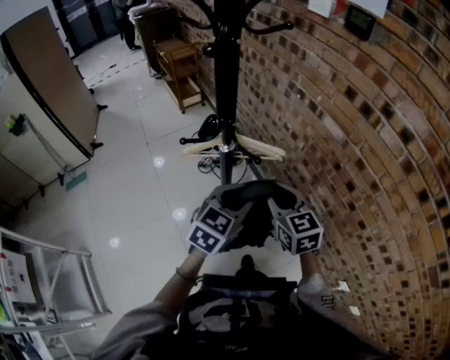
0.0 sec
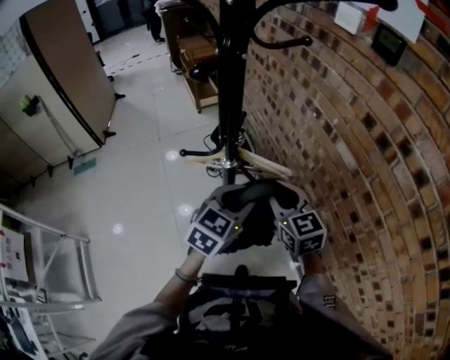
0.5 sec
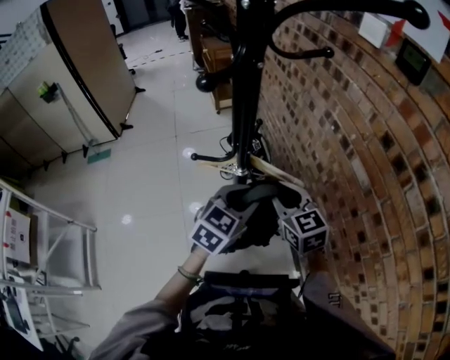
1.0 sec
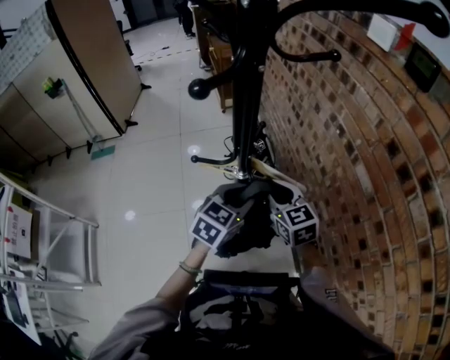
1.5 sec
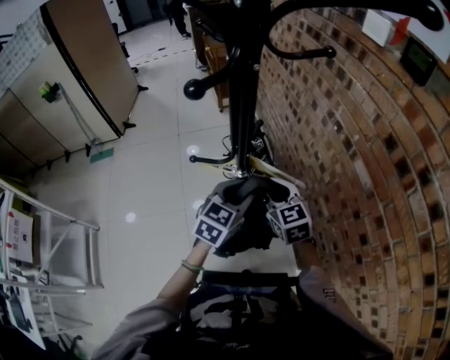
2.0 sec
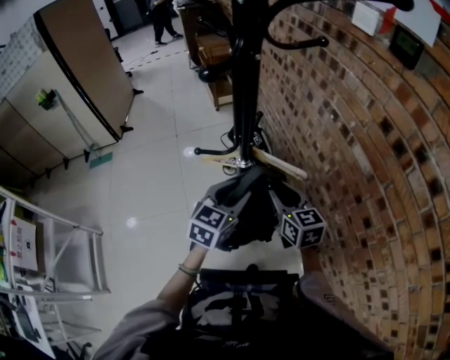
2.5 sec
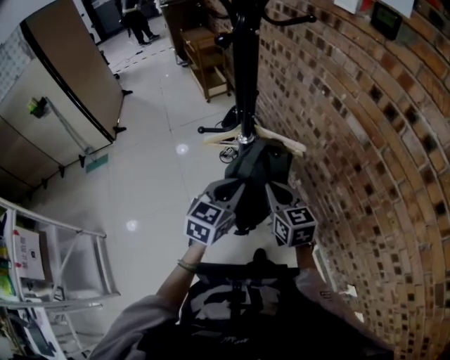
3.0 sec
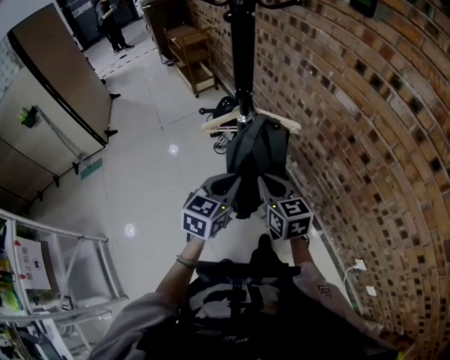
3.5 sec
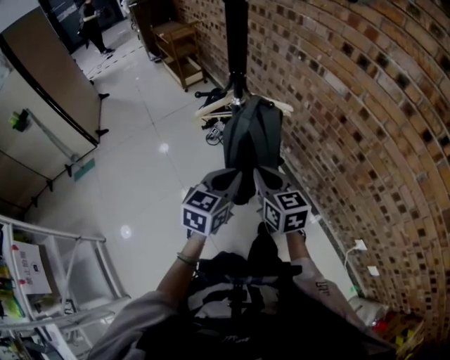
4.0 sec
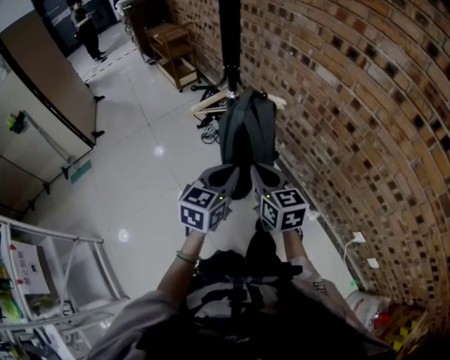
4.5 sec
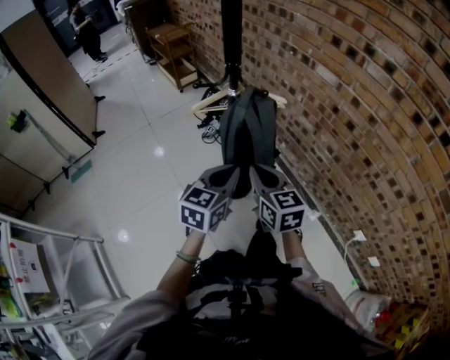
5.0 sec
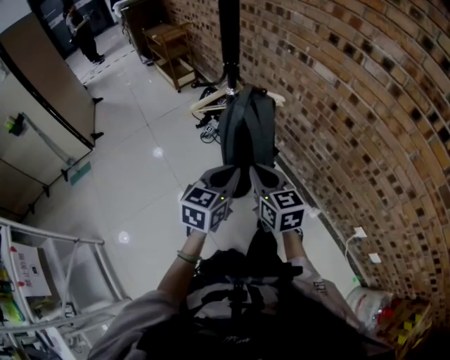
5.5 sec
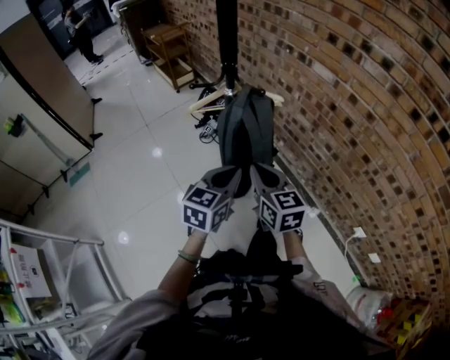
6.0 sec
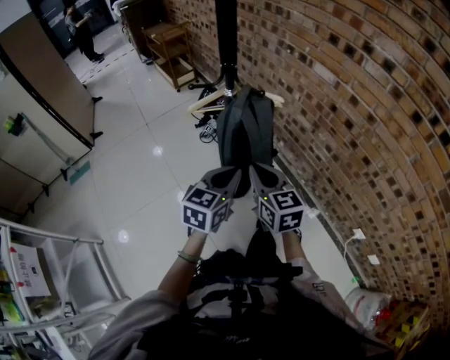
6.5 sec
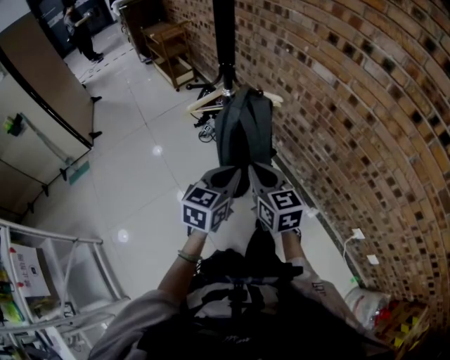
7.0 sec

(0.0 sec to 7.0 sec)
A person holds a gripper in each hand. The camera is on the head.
0.0 sec - 2.0 sec: The grippers both shift forward by about 15 cm.
2.0 sec - 3.5 sec: The left gripper is displaced backward and to the left by approximately 20 cm, and closes, while the right gripper shifts some 20 cm backward, swivels approximately 30 degrees, and closes its fingers.
3.5 sec - 5.0 sec: The two grippers go roughly 10 cm backward.
5.0 sec - 7.0 sec: The grippers stay close to where they were, moving slightly.

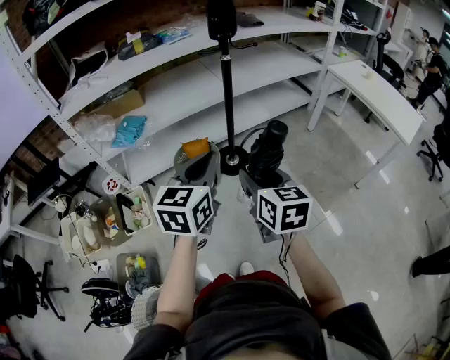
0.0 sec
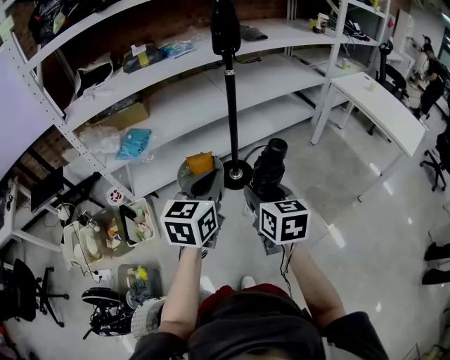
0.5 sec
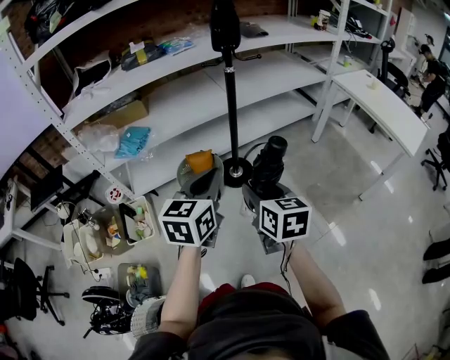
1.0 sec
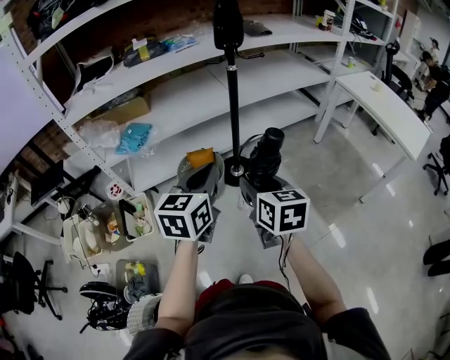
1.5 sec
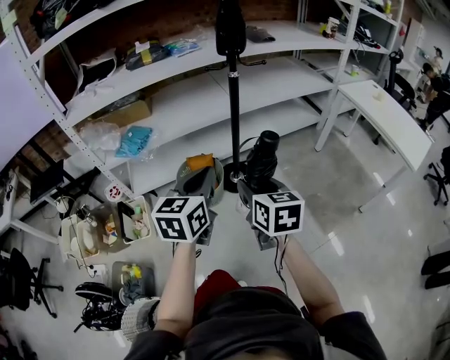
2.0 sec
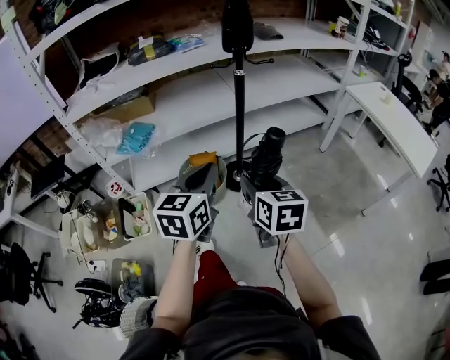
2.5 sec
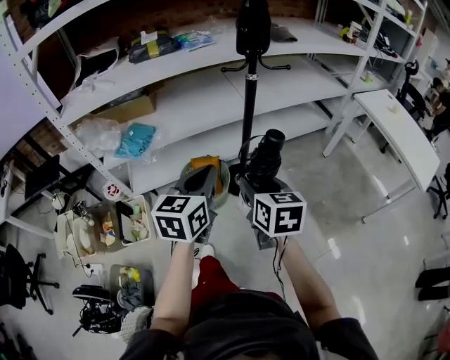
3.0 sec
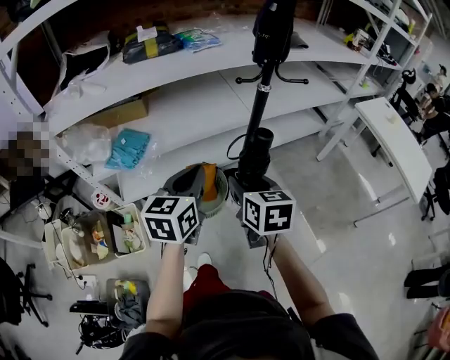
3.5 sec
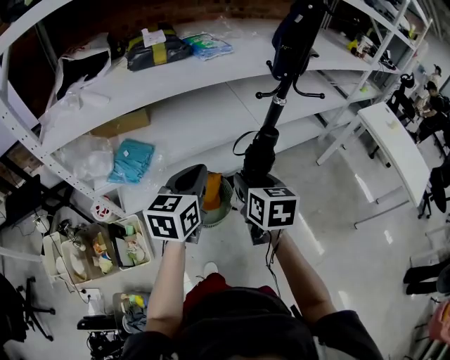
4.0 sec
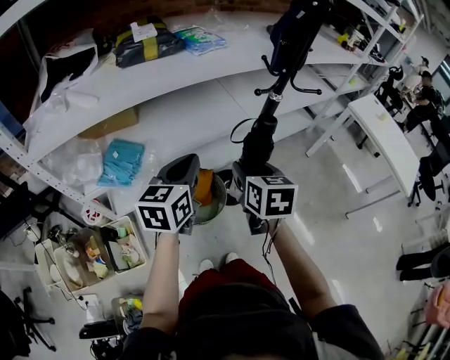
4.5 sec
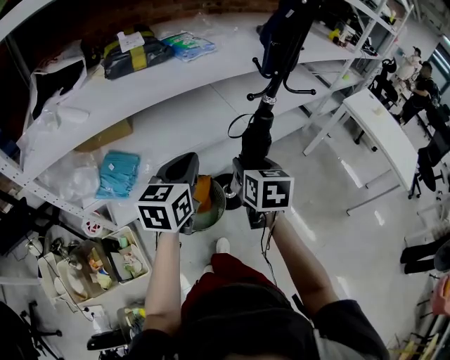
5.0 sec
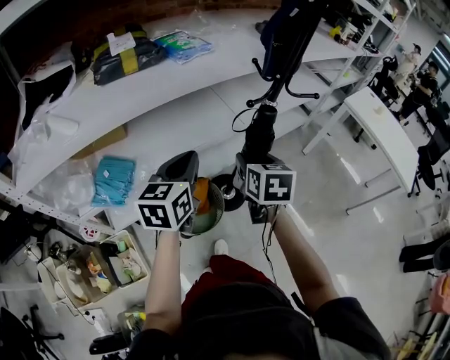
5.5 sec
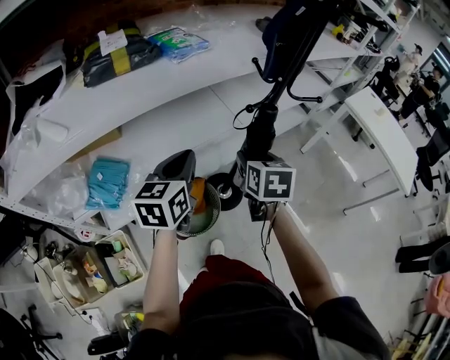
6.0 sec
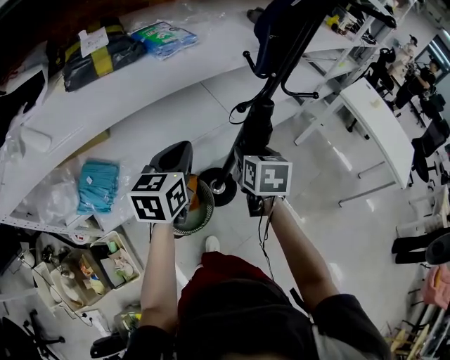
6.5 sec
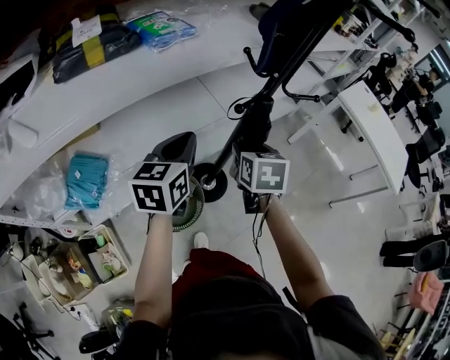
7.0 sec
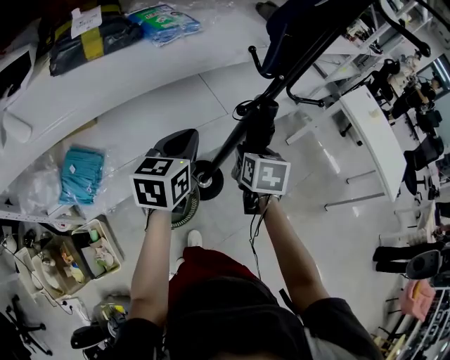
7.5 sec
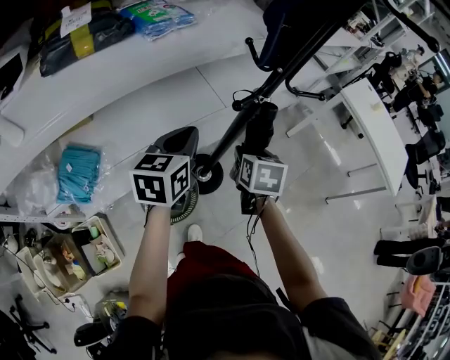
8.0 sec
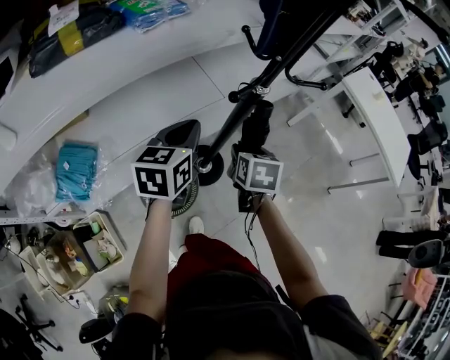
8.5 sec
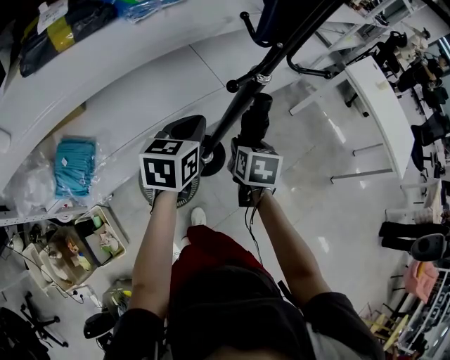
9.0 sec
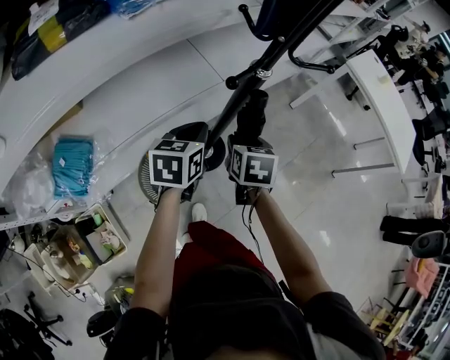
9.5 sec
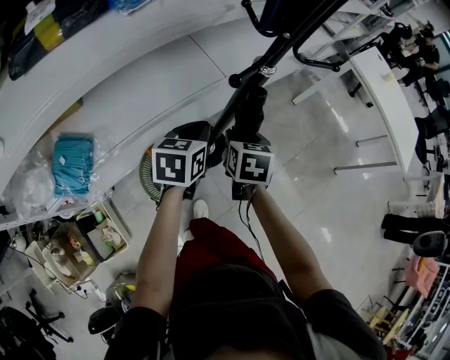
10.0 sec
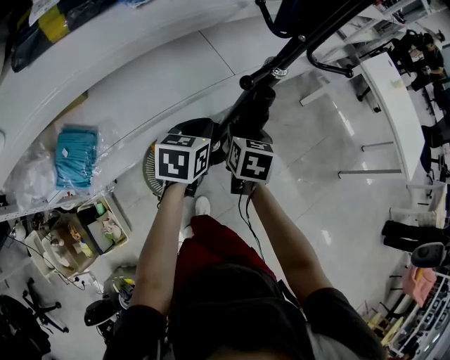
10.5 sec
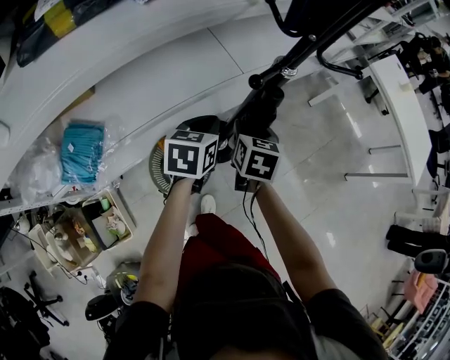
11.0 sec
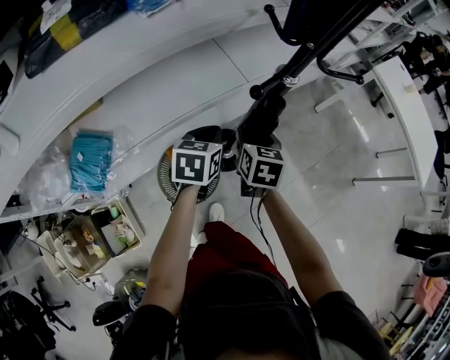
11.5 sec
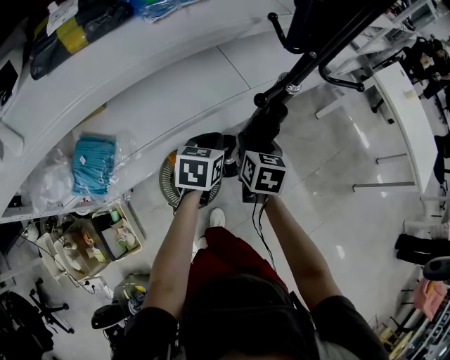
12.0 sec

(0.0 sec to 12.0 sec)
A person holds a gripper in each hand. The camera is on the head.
0.0 sec - 2.0 sec: The right gripper shifts approximately 5 cm forward; the left gripper ends up about 5 cm from where it was.
2.0 sec - 4.0 sec: The grippers both shift forward and to the left by some 35 cm.
4.0 sec - 6.0 sec: The grippers both shift forward by about 15 cm.
6.0 sec - 8.0 sec: The right gripper moves downward, forward and to the right, roughly 10 cm; the left gripper moves forward and to the right, roughly 10 cm.
8.0 sec - 10.0 sec: The left gripper moves downward and to the right, about 10 cm. Meanwhile the right gripper shifts roughly 5 cm downward.
10.0 sec - 12.0 sec: The grippers stay close to where they were, moving slightly.

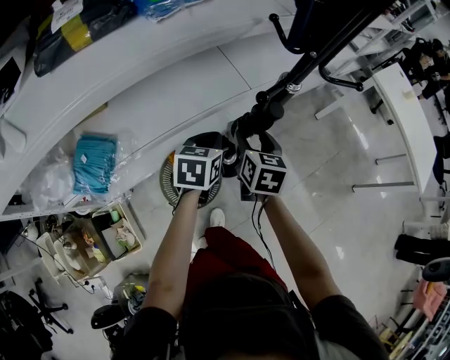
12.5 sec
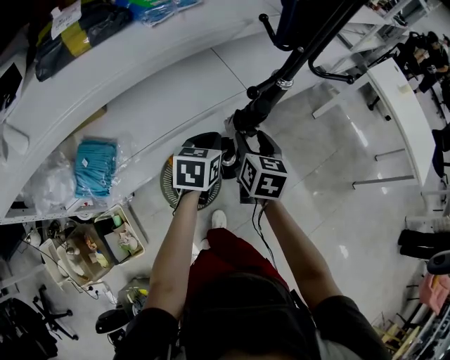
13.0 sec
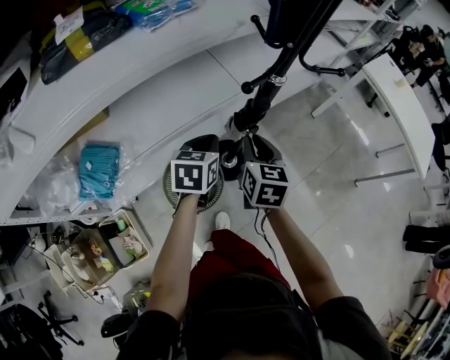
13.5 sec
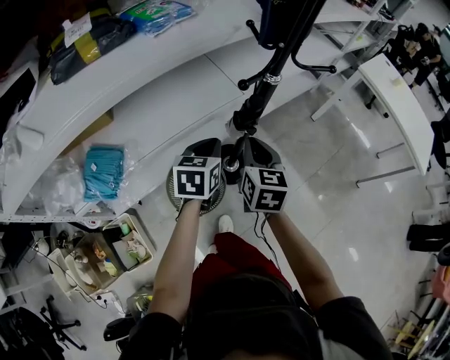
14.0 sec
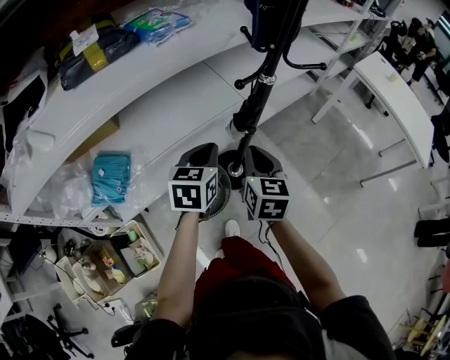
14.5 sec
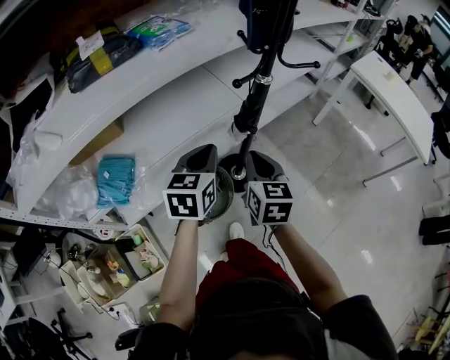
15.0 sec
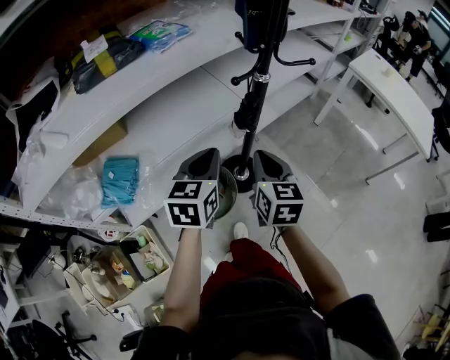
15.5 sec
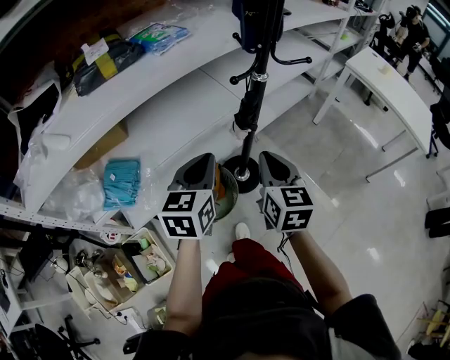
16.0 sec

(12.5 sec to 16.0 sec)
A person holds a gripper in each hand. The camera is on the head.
12.5 sec - 14.5 sec: The left gripper is displaced upward and backward by roughly 10 cm. The right gripper moves backward and upward, approximately 15 cm, and closes.
14.5 sec - 16.0 sec: The two grippers go some 10 cm backward and upward.

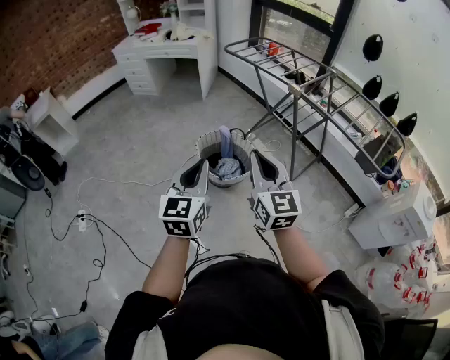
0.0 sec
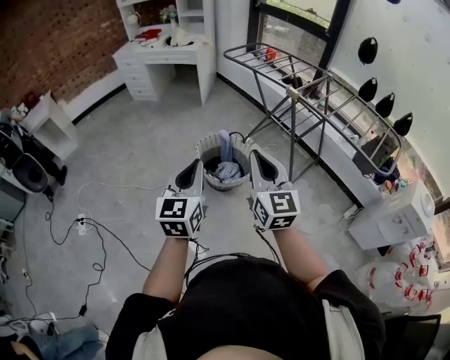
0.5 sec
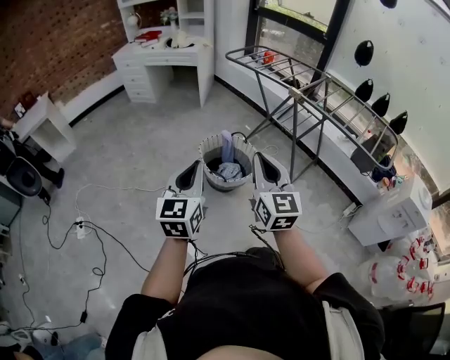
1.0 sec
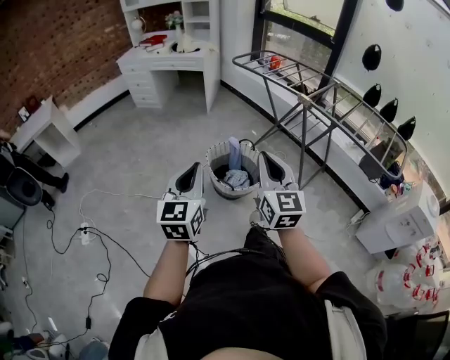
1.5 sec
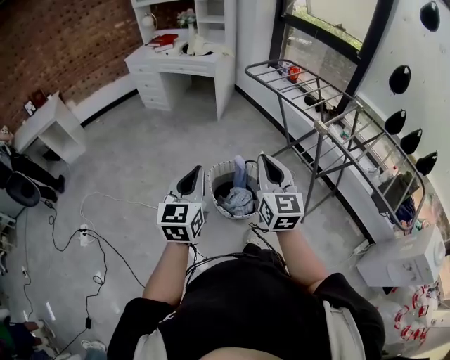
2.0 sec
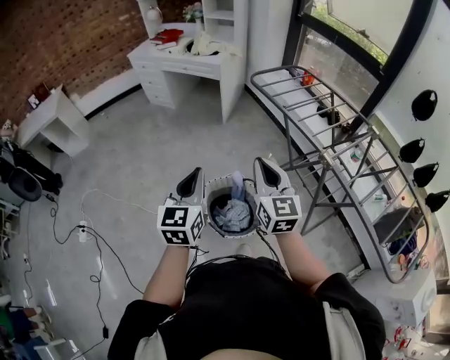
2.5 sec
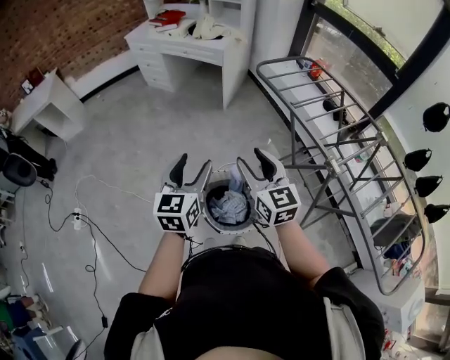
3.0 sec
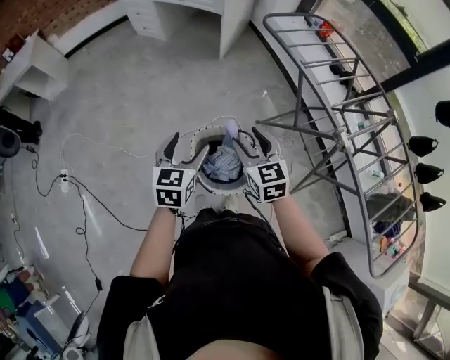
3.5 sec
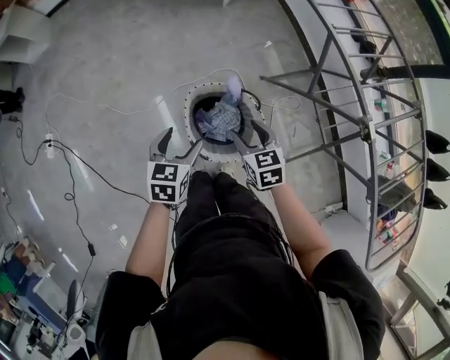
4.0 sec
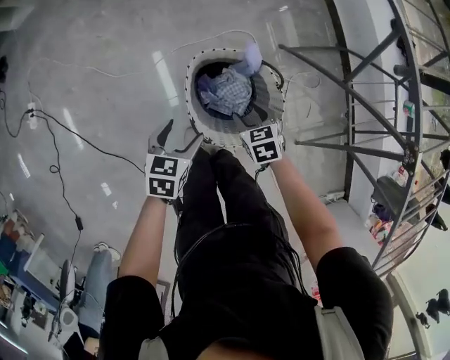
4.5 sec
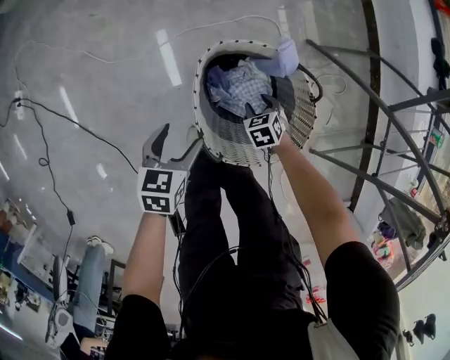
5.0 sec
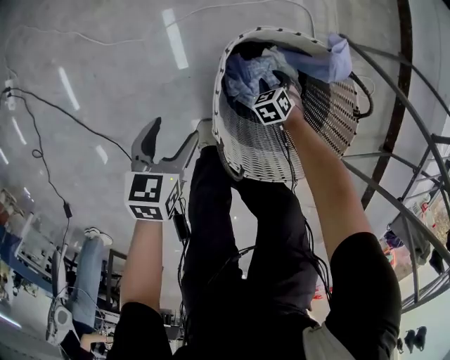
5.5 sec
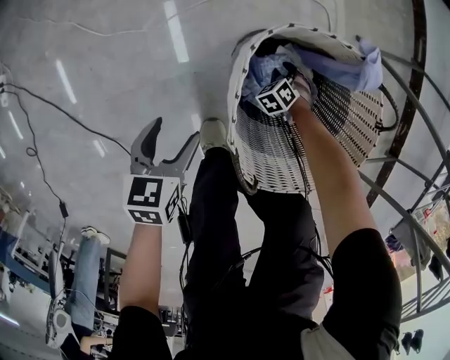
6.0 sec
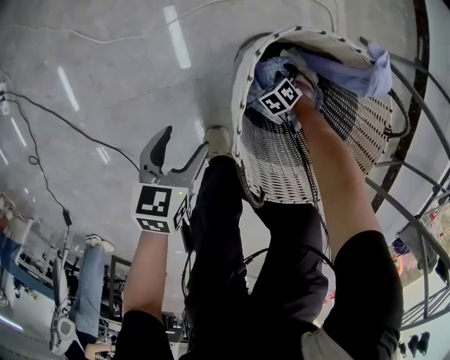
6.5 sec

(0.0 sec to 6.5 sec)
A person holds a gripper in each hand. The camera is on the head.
0.0 sec - 2.0 sec: The grippers both shift forward by about 20 cm.
2.0 sec - 4.5 sec: The right gripper travels downward and forward by roughly 60 cm, angles its fingers downward, by approximately 60 degrees, and opens its fingers, while the left gripper travels downward by some 50 cm, tilts its fingers roughly 40 degrees downward, and opens up.
4.5 sec - 6.5 sec: The left gripper heads downward, covering roughly 30 cm, while the right gripper shifts roughly 50 cm downward, swivels approximately 50 degrees, and closes.
